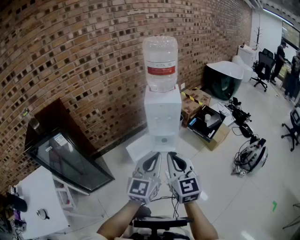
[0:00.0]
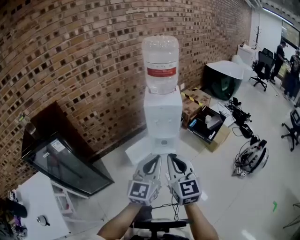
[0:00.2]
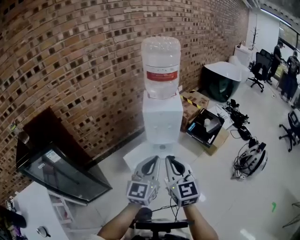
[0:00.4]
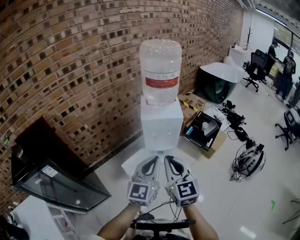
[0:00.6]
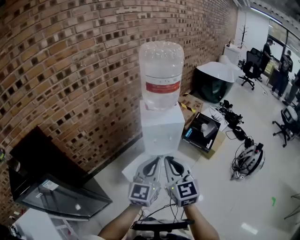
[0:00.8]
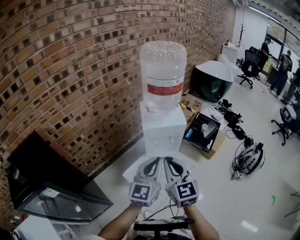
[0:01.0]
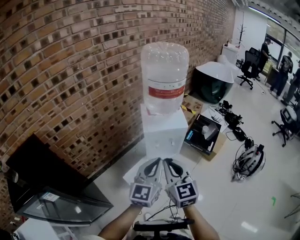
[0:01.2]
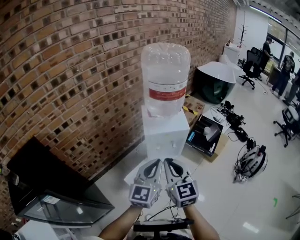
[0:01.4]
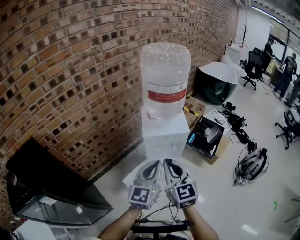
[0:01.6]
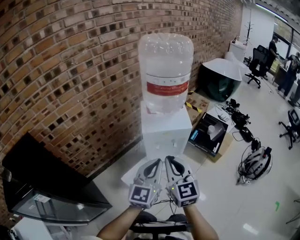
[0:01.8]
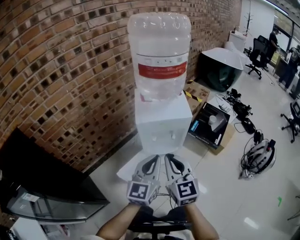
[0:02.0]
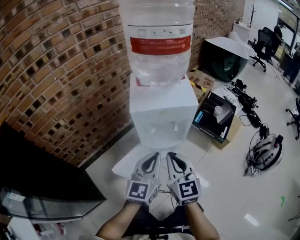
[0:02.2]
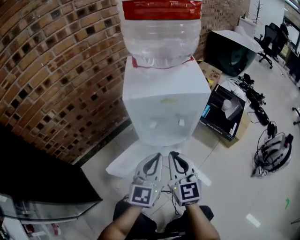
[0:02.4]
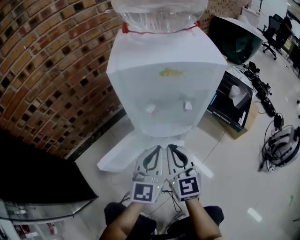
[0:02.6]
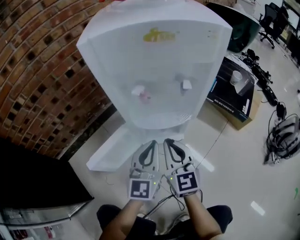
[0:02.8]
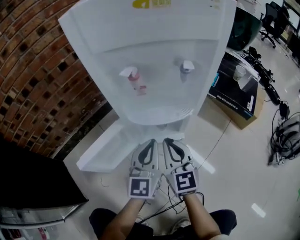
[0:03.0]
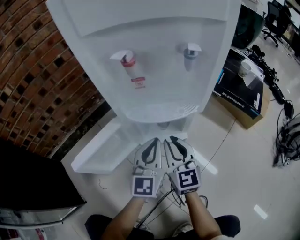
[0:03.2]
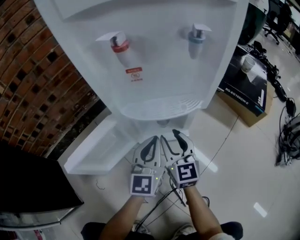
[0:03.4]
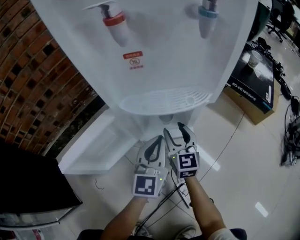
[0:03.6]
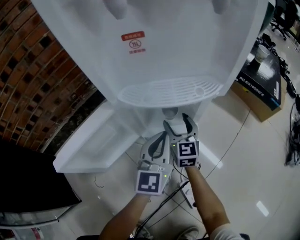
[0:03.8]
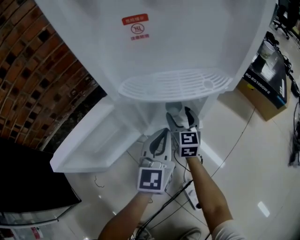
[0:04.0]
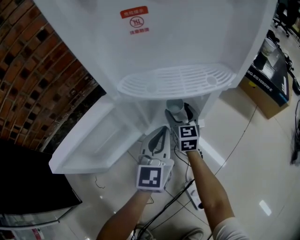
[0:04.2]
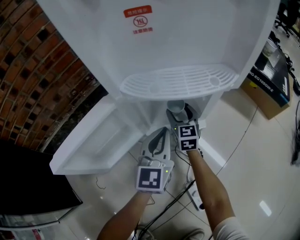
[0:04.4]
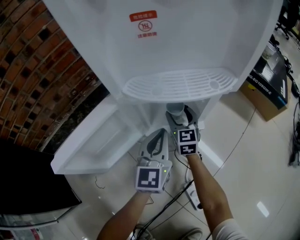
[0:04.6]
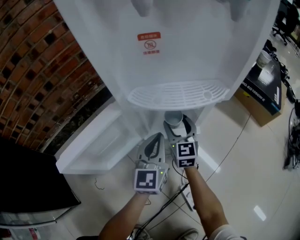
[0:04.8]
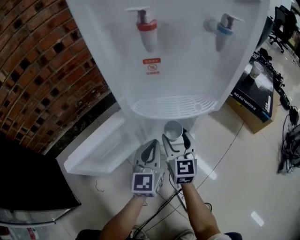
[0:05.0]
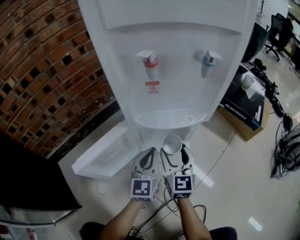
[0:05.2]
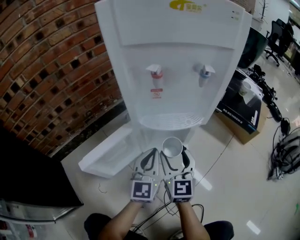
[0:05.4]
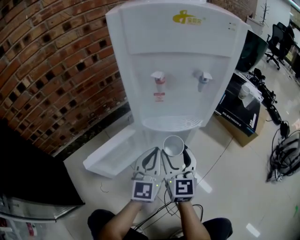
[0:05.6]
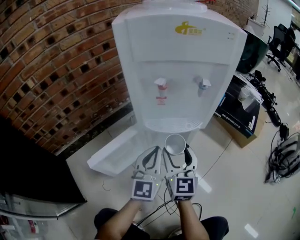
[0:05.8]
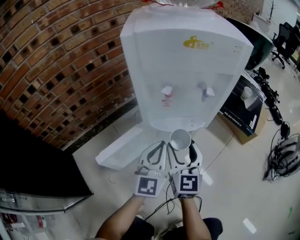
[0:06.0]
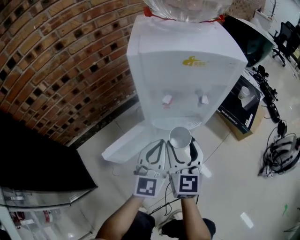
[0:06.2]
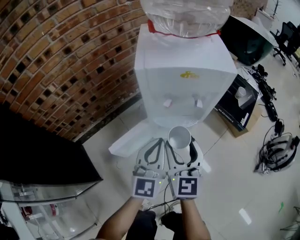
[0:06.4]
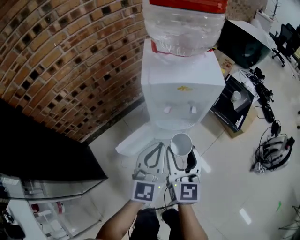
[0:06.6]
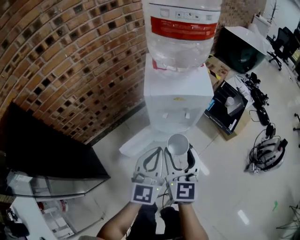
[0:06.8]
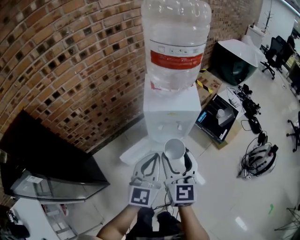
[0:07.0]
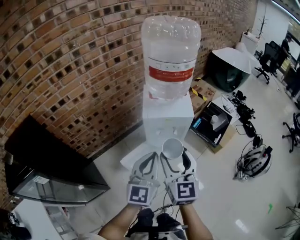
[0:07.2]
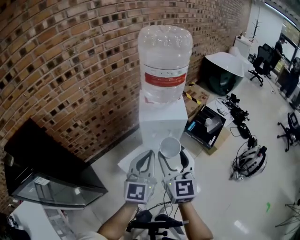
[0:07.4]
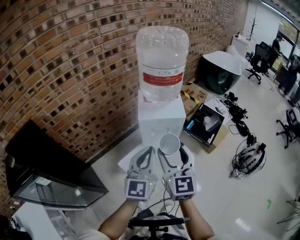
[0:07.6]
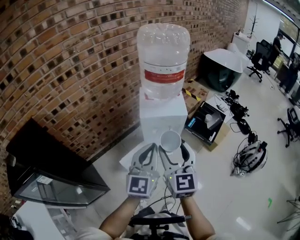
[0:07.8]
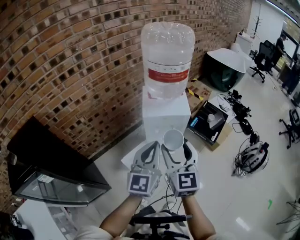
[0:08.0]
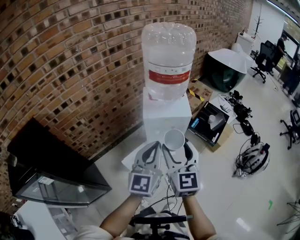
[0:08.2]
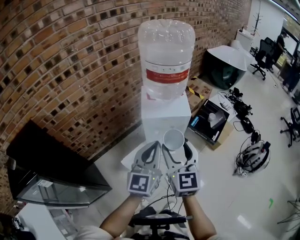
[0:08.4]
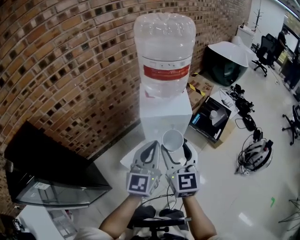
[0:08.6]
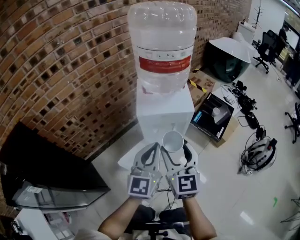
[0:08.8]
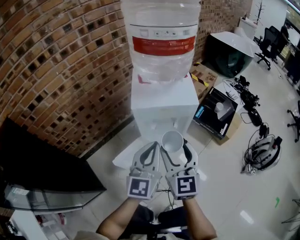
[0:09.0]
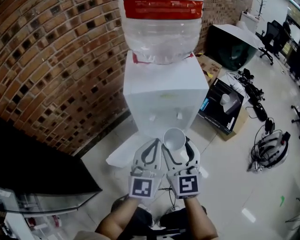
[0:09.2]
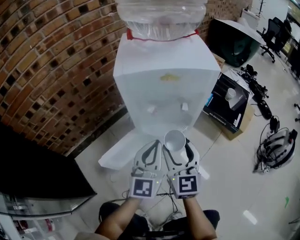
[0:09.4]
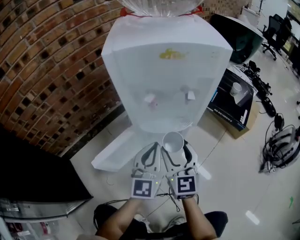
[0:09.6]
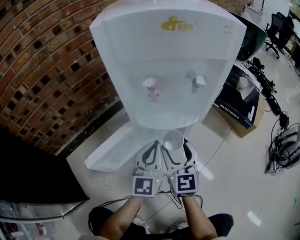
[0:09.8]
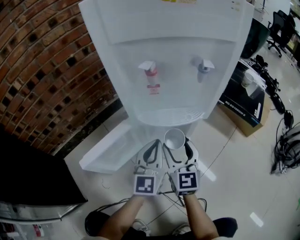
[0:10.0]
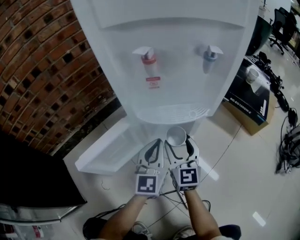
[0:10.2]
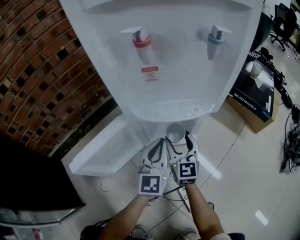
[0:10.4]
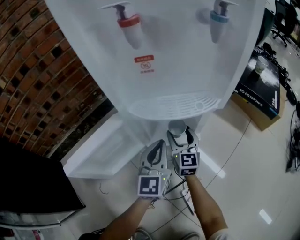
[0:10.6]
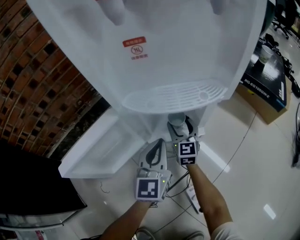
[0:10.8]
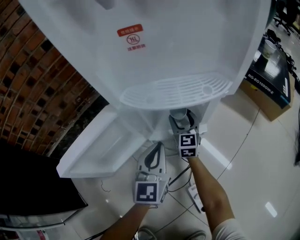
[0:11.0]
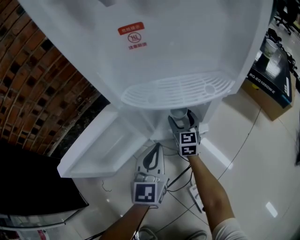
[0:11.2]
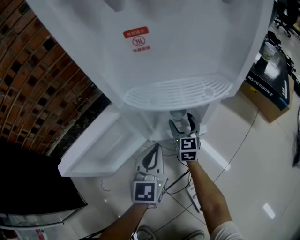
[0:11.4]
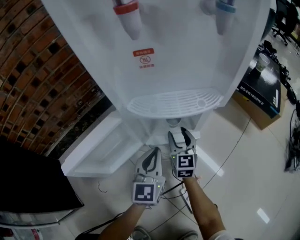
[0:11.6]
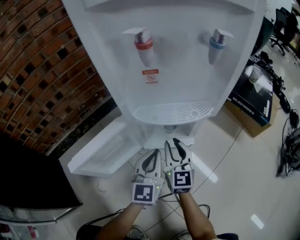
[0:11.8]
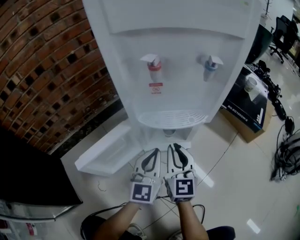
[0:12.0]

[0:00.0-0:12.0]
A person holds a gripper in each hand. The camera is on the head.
0:00.0 to 0:01.6: The left gripper heads forward, covering about 25 cm, while the right gripper moves forward and to the left, approximately 30 cm.
0:01.6 to 0:03.0: The grippers both shift downward by about 50 cm.
0:03.0 to 0:04.4: The right gripper heads downward and forward, covering approximately 35 cm, and opens, while the left gripper is displaced downward by some 15 cm.
0:04.4 to 0:06.0: The left gripper shifts some 25 cm upward, while the right gripper travels upward and backward by about 40 cm.
0:06.0 to 0:07.6: The grippers both shift upward by about 50 cm.
0:07.6 to 0:09.0: The grippers both shift downward and forward by roughly 20 cm.
0:09.0 to 0:10.4: Both grippers move downward, roughly 50 cm.
0:10.4 to 0:12.0: The left gripper reaches roughly 10 cm downward, then returns. The right gripper shifts about 10 cm upward and backward, and closes up.

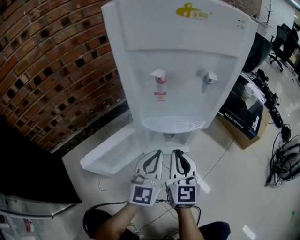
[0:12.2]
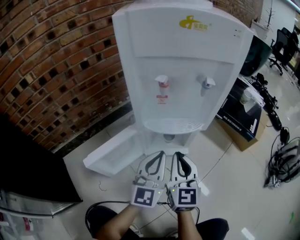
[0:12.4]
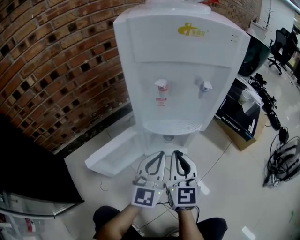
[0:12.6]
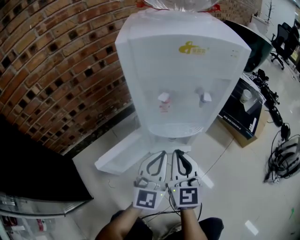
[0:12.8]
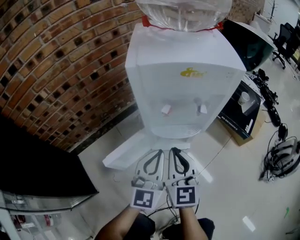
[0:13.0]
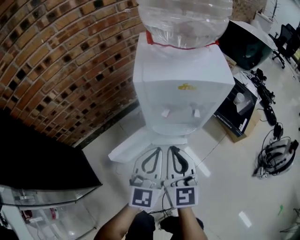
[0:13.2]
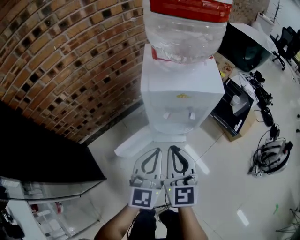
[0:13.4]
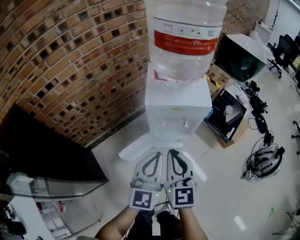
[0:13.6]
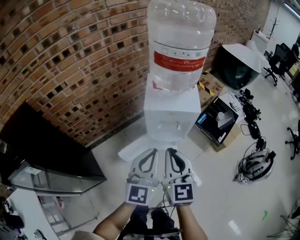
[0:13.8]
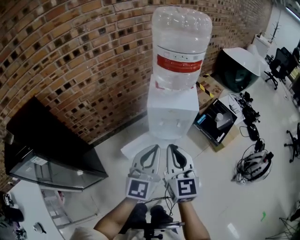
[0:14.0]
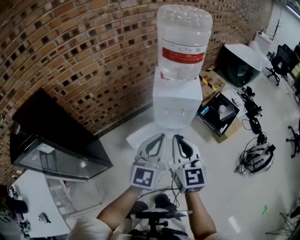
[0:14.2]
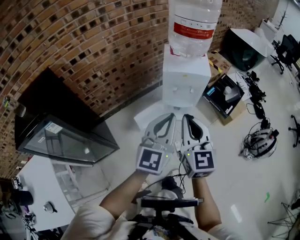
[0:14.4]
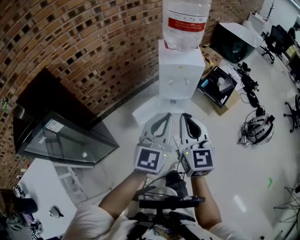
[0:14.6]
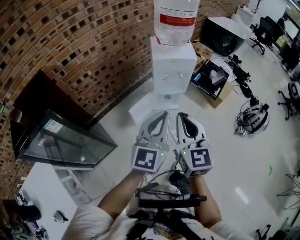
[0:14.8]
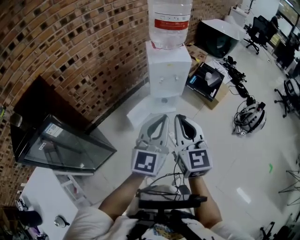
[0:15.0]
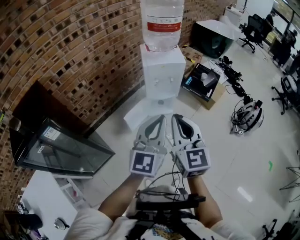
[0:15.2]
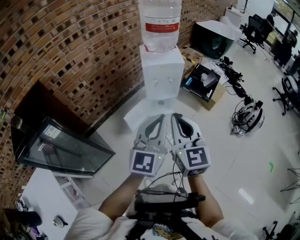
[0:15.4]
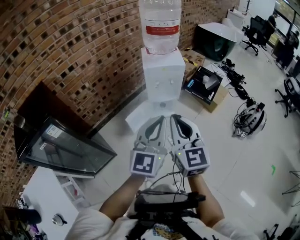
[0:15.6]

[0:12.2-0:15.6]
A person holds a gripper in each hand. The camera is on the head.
0:12.2 to 0:13.8: The two grippers go about 50 cm upward.
0:13.8 to 0:15.6: The two grippers go approximately 25 cm backward and upward.

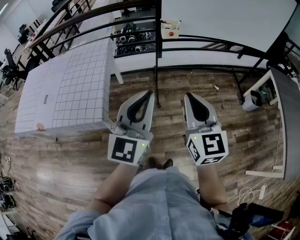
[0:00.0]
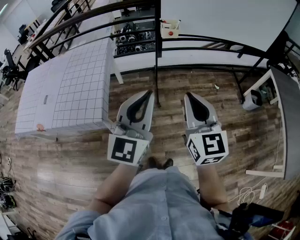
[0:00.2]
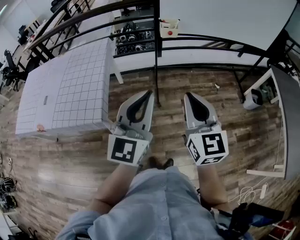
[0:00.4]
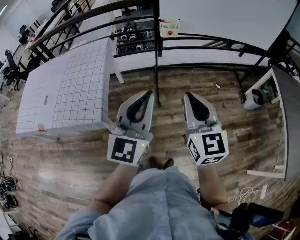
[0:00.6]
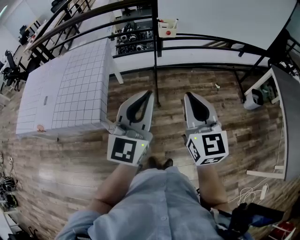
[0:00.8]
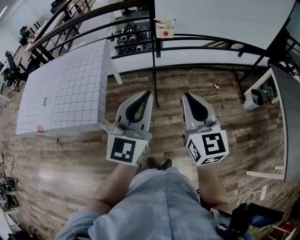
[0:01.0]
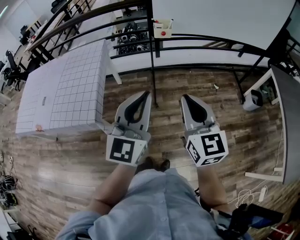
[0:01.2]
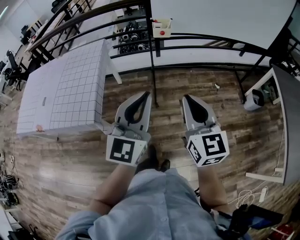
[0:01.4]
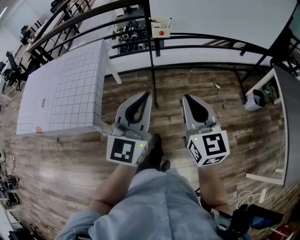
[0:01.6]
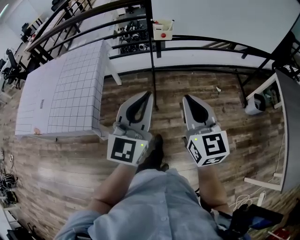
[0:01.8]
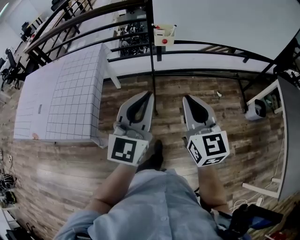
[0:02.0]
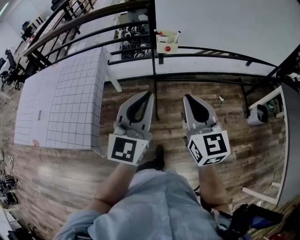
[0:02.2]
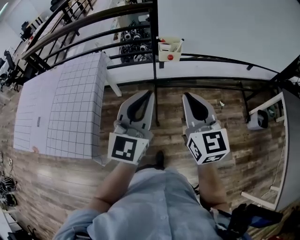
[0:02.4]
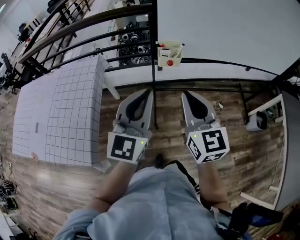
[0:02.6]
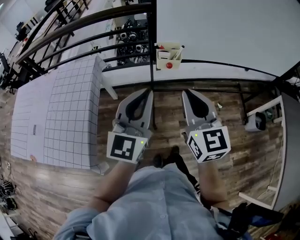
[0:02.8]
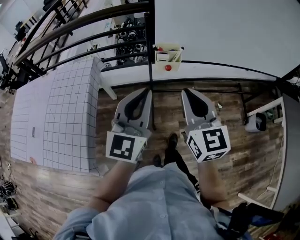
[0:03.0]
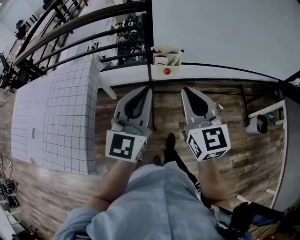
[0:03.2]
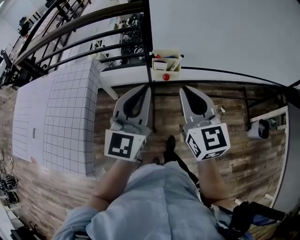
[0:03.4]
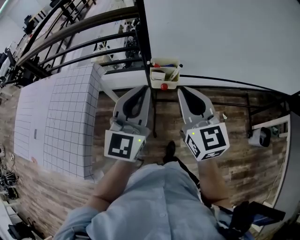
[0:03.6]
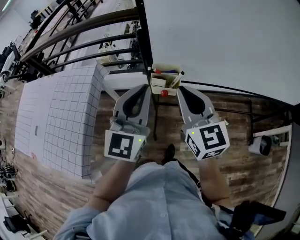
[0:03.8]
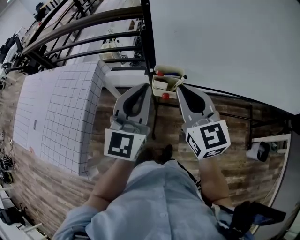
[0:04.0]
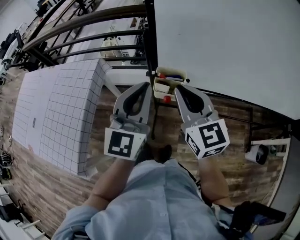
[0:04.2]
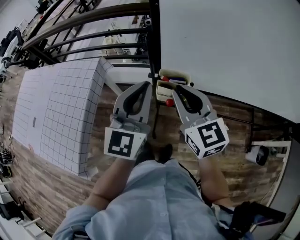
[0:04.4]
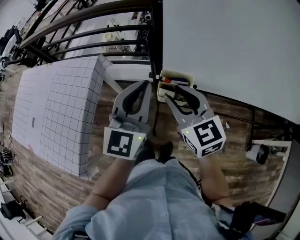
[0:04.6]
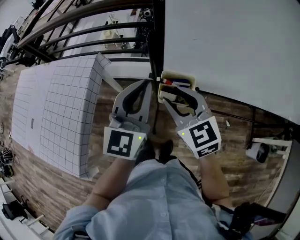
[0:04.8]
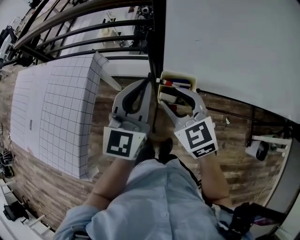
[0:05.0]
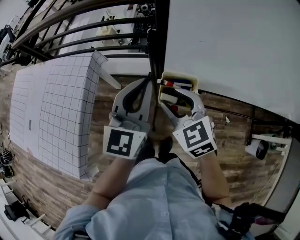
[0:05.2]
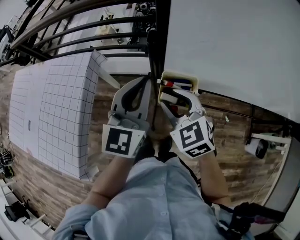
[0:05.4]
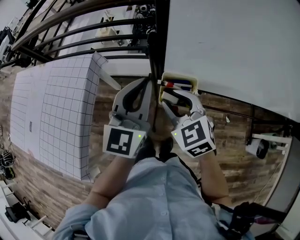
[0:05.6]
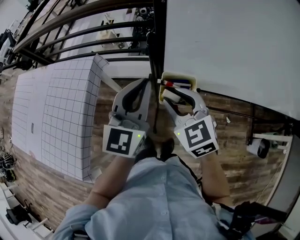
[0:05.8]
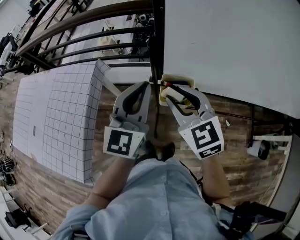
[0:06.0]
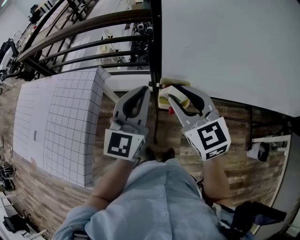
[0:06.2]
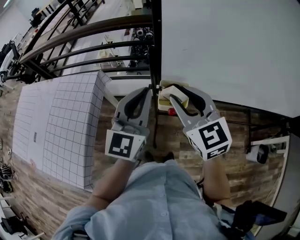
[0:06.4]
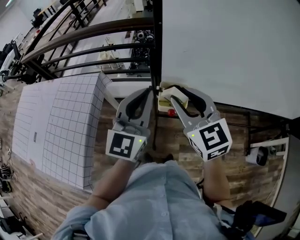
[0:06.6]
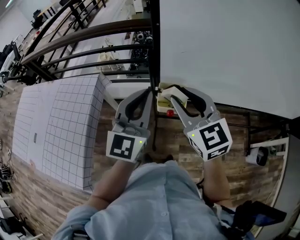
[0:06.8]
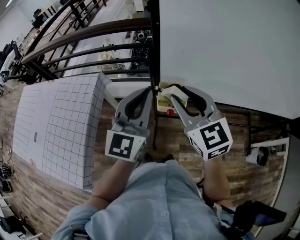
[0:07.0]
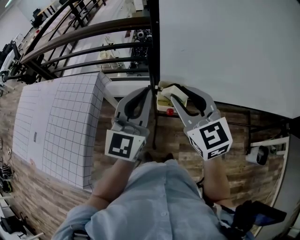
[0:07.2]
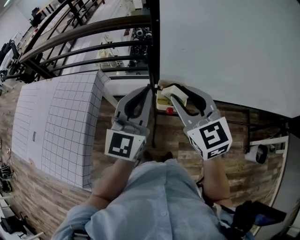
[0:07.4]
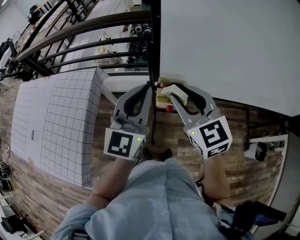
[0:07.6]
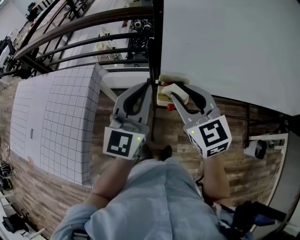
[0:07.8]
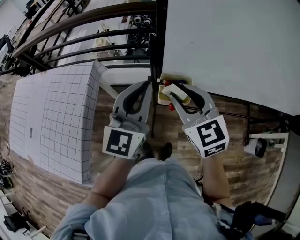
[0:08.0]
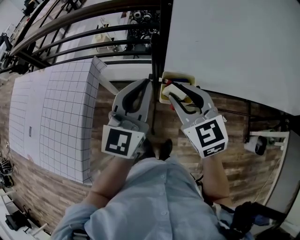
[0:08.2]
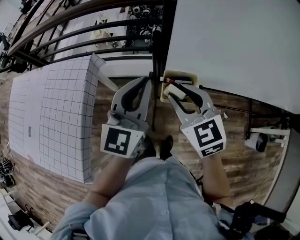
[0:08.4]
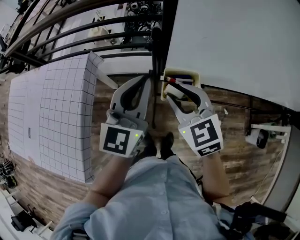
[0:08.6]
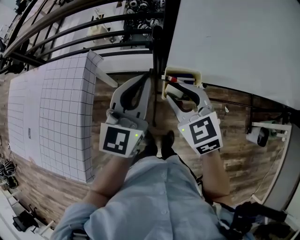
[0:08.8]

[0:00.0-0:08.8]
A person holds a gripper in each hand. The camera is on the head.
0:00.0 to 0:01.4: The two grippers go some 5 cm to the right.
0:01.4 to 0:03.0: Both grippers travel together forward, about 35 cm.
0:03.0 to 0:04.4: The grippers both shift forward by some 20 cm. The right gripper rotates about 20 degrees.
0:04.4 to 0:05.8: The left gripper heads forward, covering some 5 cm, while the right gripper heads downward, covering roughly 5 cm, turns by roughly 20 degrees, and opens its fingers.
0:05.8 to 0:07.4: The left gripper shifts by about 5 cm. The right gripper shifts about 10 cm upward.
0:07.4 to 0:08.8: The left gripper moves downward and forward, approximately 10 cm. The right gripper shifts about 10 cm downward.
